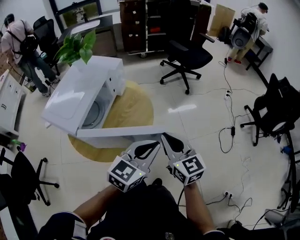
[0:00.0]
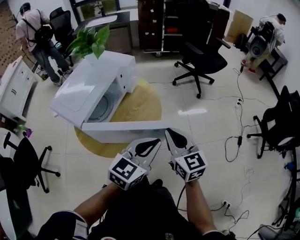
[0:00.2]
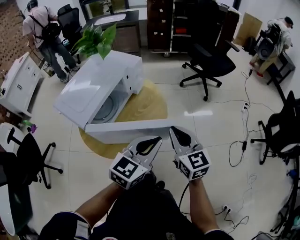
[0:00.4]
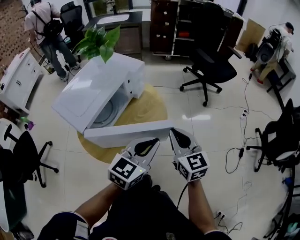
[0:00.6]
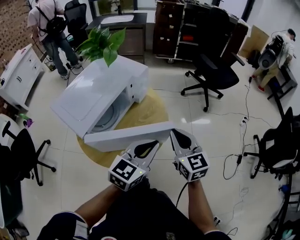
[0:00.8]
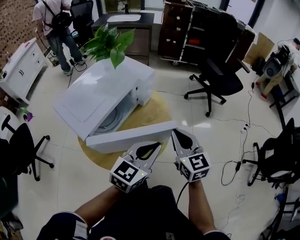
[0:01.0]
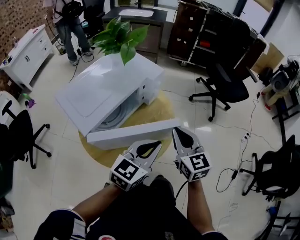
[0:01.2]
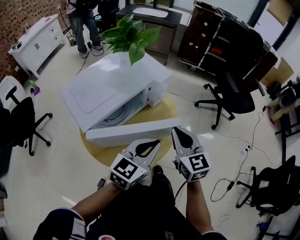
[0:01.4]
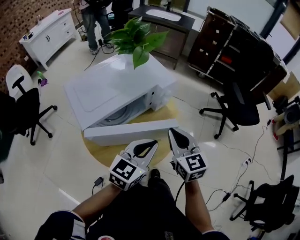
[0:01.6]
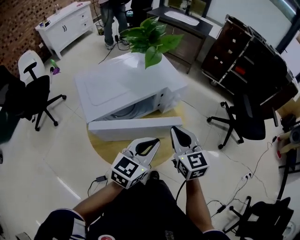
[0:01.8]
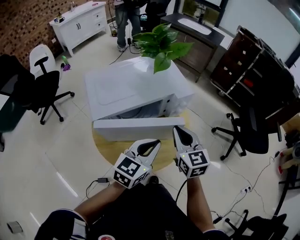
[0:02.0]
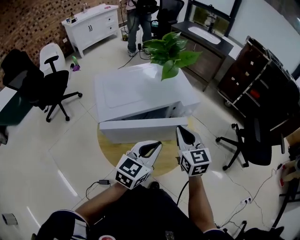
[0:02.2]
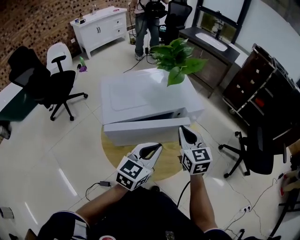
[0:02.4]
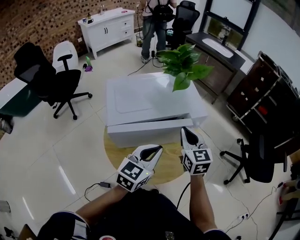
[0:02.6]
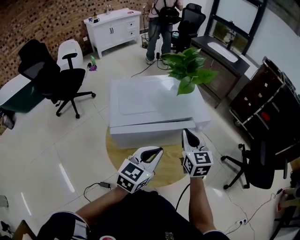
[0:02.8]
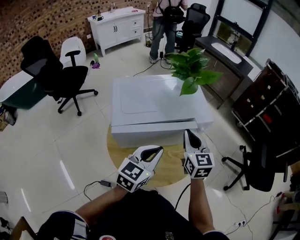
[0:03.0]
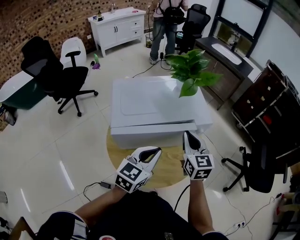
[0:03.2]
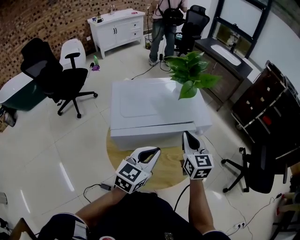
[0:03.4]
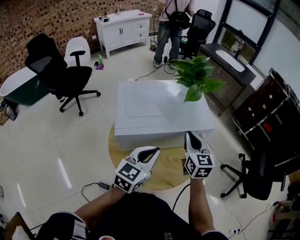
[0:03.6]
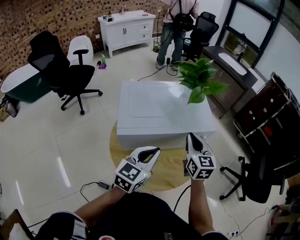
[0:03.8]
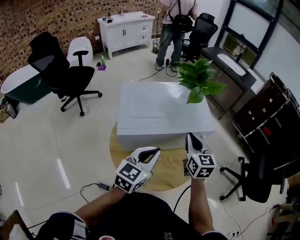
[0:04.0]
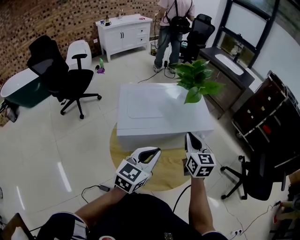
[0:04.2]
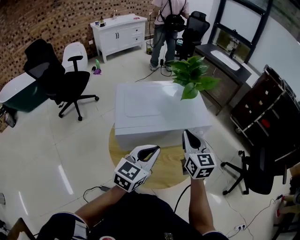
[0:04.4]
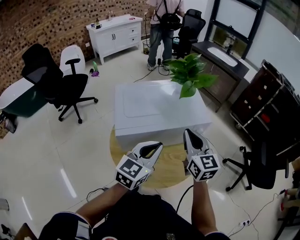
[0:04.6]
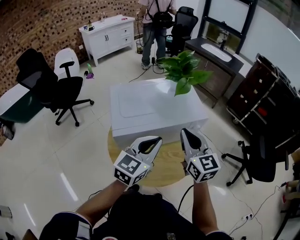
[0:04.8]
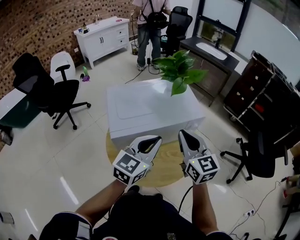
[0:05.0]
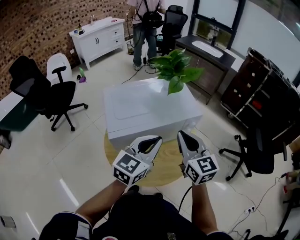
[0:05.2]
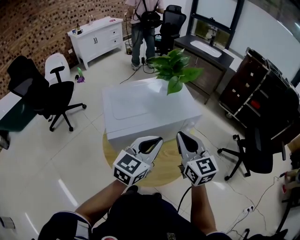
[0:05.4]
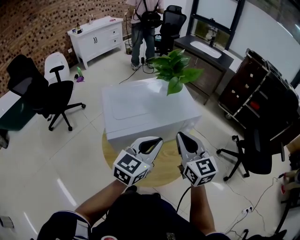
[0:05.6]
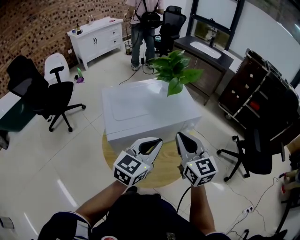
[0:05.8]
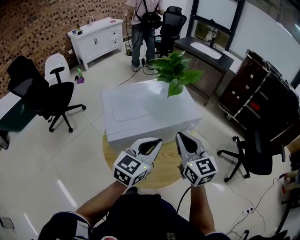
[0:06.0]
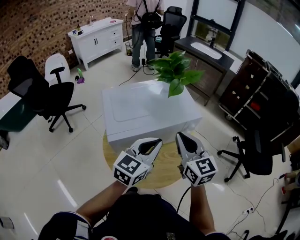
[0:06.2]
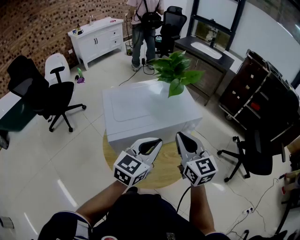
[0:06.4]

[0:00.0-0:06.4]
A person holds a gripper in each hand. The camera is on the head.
0.0 to 1.6 s: The left gripper ends up approximately 20 cm from where it was, and swivels roughly 40 degrees. Meanwhile the right gripper shifts by roughly 20 cm, and rotates some 30 degrees.
1.6 to 3.2 s: The right gripper is displaced forward by approximately 15 cm; the left gripper shifts about 10 cm forward and to the left, and rotates approximately 30 degrees.
3.2 to 4.8 s: The grippers both shift upward by roughly 5 cm.
4.8 to 6.4 s: The grippers move only a little.

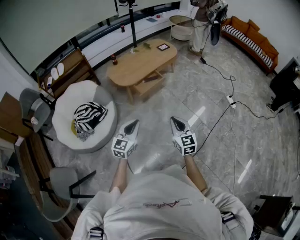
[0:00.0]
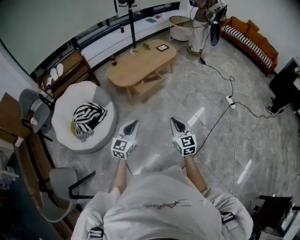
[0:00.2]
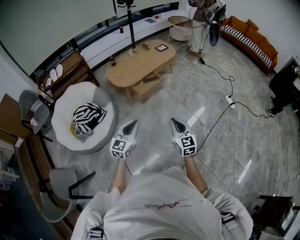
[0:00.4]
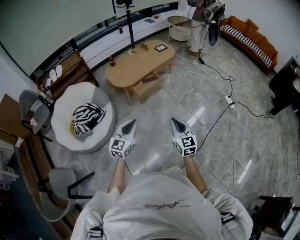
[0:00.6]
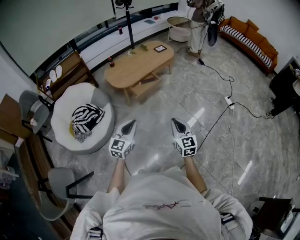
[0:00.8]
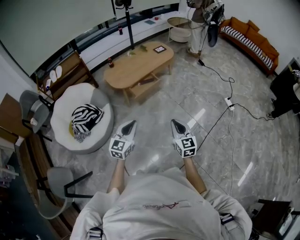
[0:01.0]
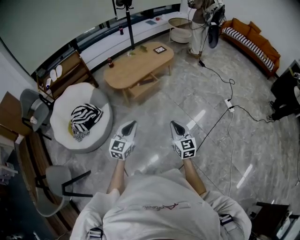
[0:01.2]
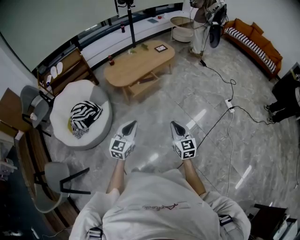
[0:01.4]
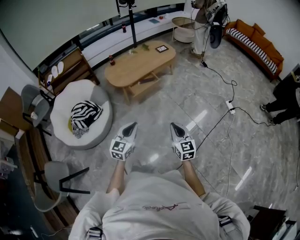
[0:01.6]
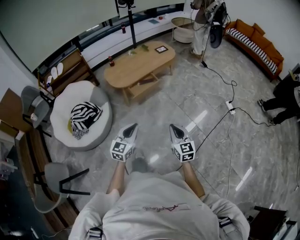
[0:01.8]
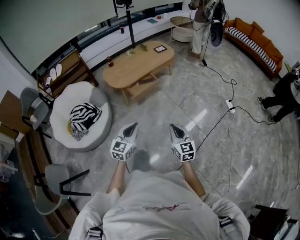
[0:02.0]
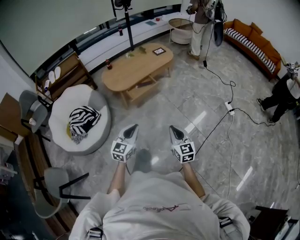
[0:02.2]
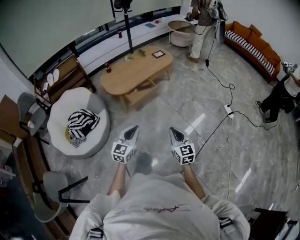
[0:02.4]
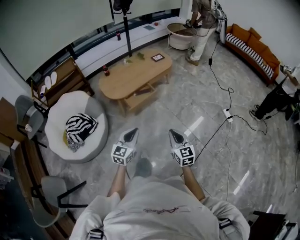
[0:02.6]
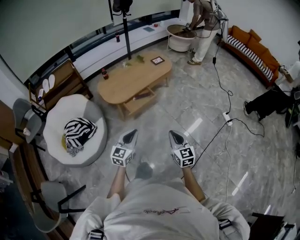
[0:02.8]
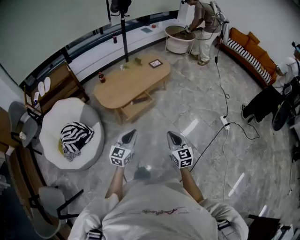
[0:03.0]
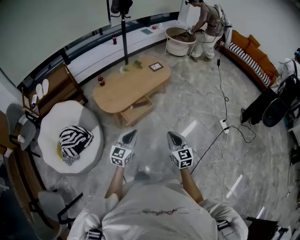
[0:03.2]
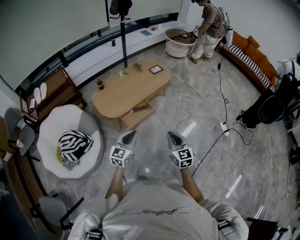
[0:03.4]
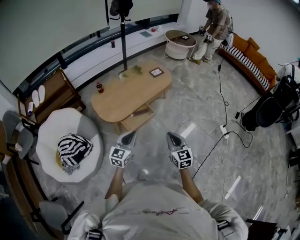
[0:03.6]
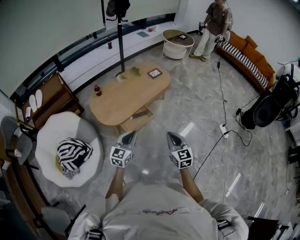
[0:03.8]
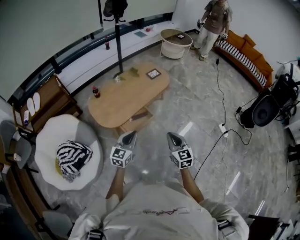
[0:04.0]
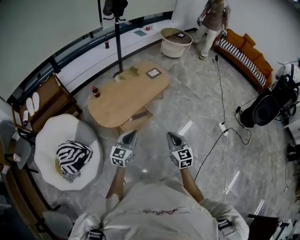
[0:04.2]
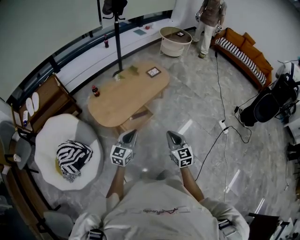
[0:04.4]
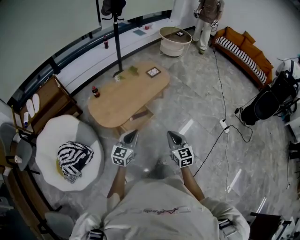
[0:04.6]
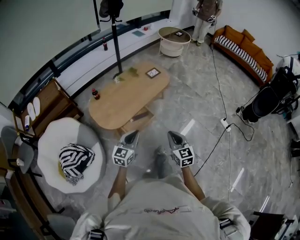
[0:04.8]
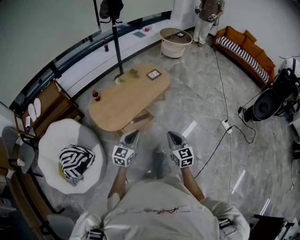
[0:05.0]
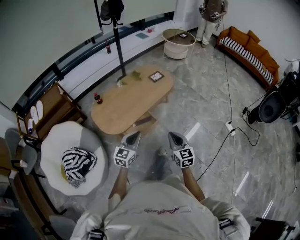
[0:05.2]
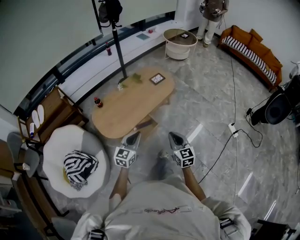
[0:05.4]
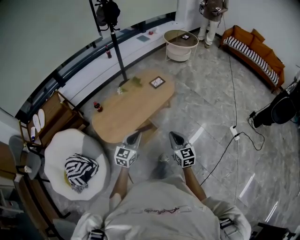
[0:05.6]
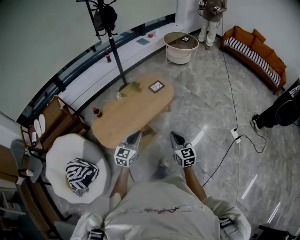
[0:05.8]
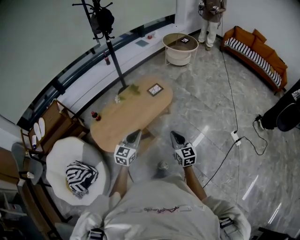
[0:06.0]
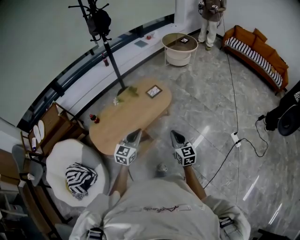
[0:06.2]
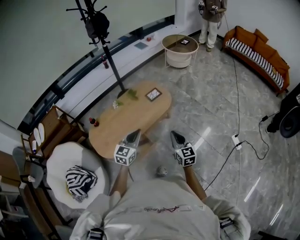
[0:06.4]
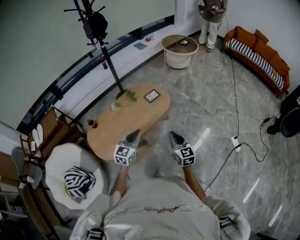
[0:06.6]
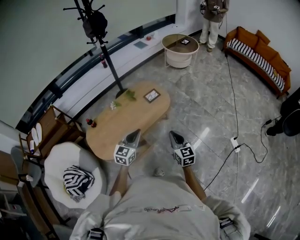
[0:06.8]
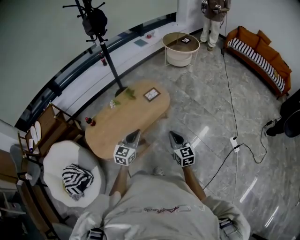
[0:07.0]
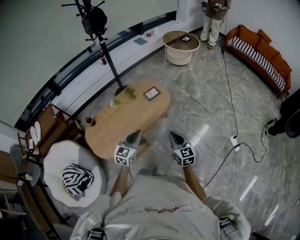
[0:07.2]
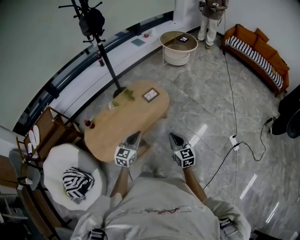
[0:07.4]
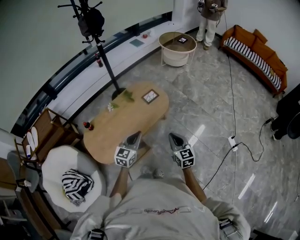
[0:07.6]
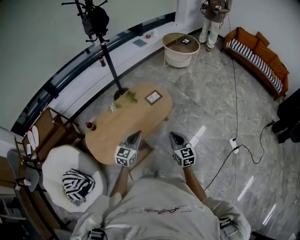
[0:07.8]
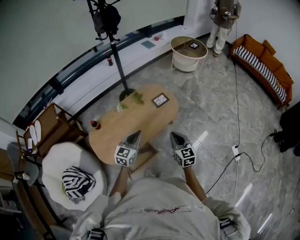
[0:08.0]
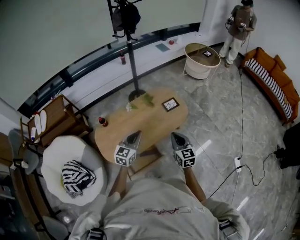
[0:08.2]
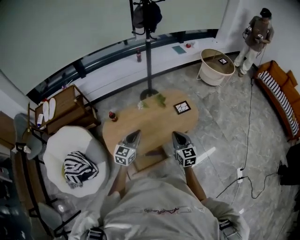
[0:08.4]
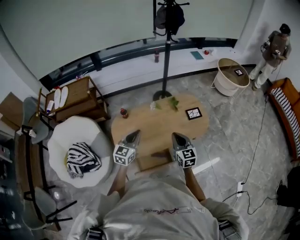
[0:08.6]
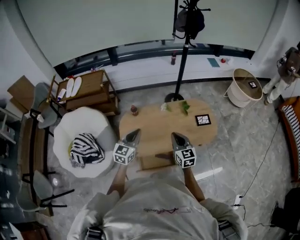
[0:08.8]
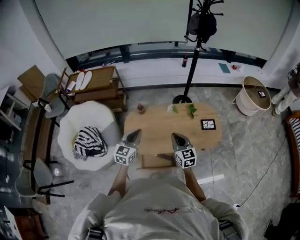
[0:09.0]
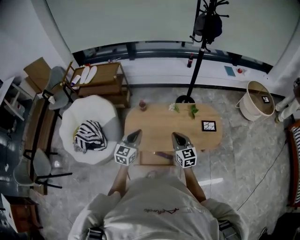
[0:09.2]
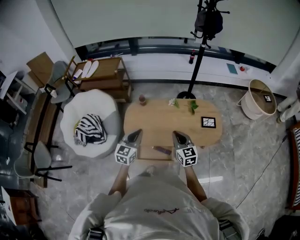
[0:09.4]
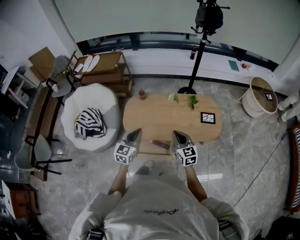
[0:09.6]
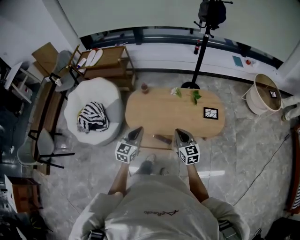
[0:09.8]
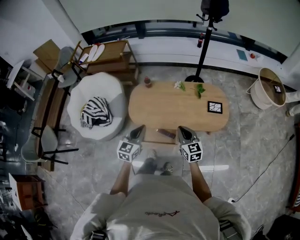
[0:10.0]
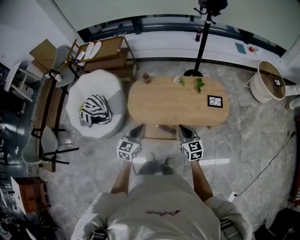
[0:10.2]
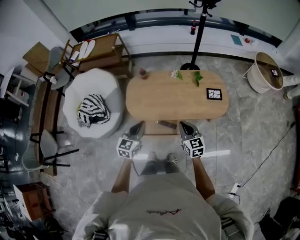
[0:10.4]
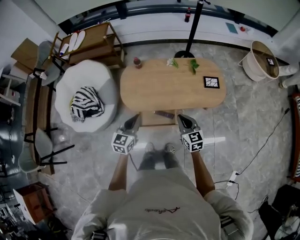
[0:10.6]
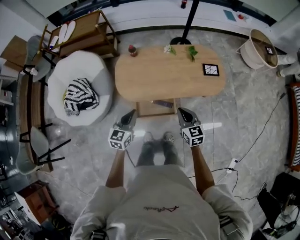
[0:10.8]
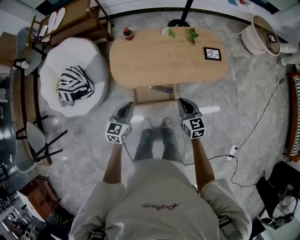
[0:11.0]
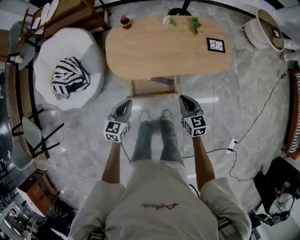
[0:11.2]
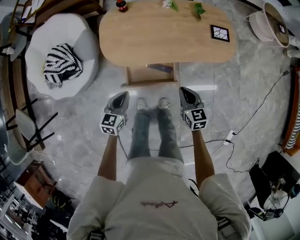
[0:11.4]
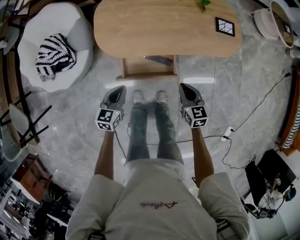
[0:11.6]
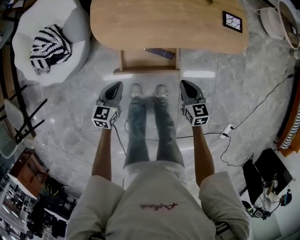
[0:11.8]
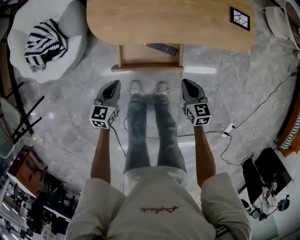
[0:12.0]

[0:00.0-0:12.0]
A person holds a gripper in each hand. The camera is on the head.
0.0 to 1.6 s: The two grippers go roughly 10 cm to the right.
1.6 to 3.0 s: Both grippers move forward, approximately 20 cm.
3.0 to 4.4 s: The right gripper shifts about 25 cm forward and to the left, while the left gripper goes roughly 20 cm forward.
4.4 to 6.0 s: Both grippers travel together forward and to the right, some 25 cm.
6.0 to 7.6 s: Both grippers move forward, roughly 15 cm.
7.6 to 9.0 s: The left gripper ends up approximately 30 cm from where it was, and rotates about 40 degrees. Meanwhile the right gripper ends up roughly 30 cm from where it was, and swivels approximately 40 degrees.
9.0 to 10.4 s: The right gripper goes roughly 15 cm backward, downward and to the right. The left gripper is displaced backward and downward by approximately 15 cm.
10.4 to 12.0 s: The grippers both shift downward by approximately 40 cm. The right gripper swivels about 20 degrees, while the left gripper rotates some 20 degrees.

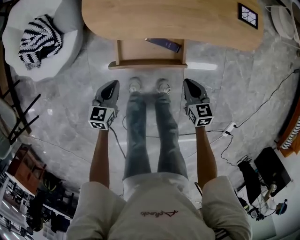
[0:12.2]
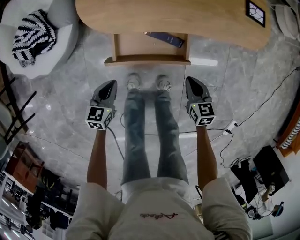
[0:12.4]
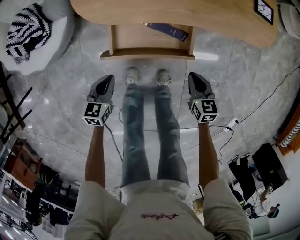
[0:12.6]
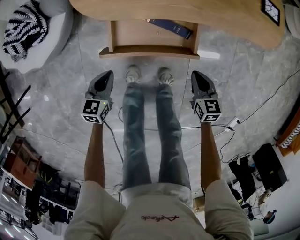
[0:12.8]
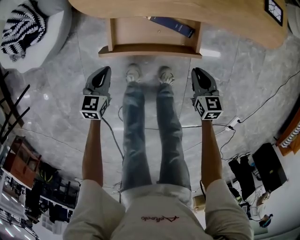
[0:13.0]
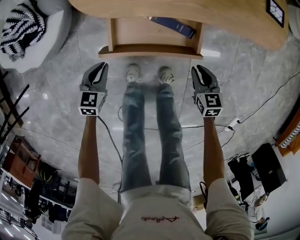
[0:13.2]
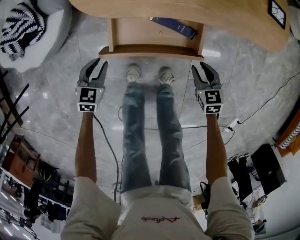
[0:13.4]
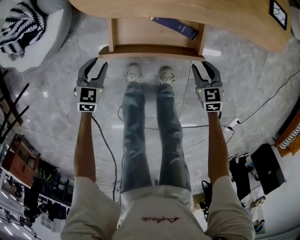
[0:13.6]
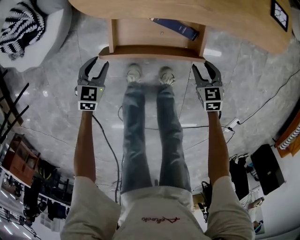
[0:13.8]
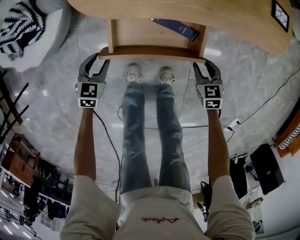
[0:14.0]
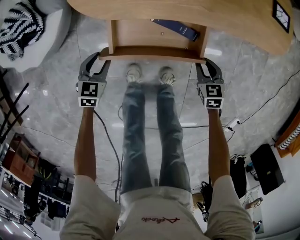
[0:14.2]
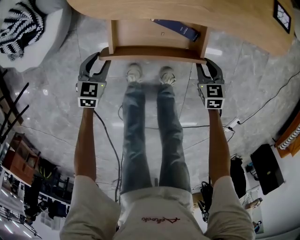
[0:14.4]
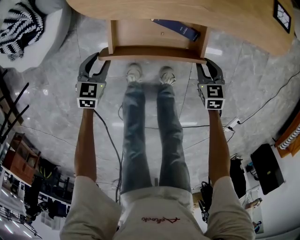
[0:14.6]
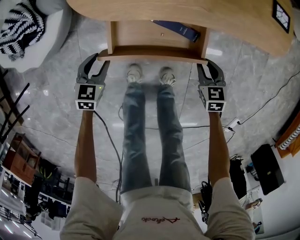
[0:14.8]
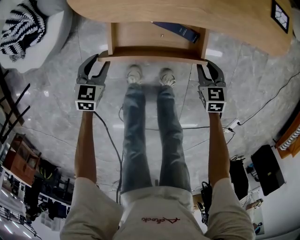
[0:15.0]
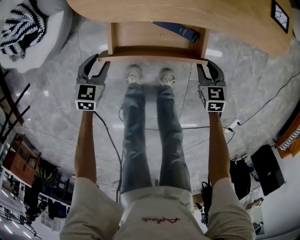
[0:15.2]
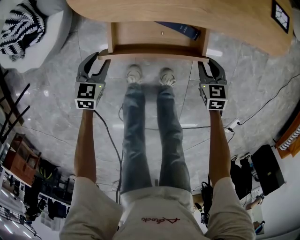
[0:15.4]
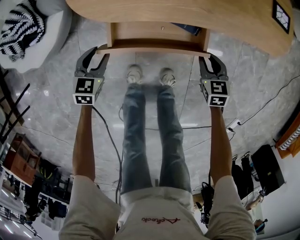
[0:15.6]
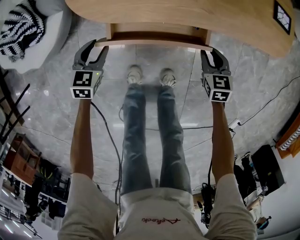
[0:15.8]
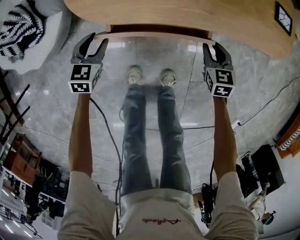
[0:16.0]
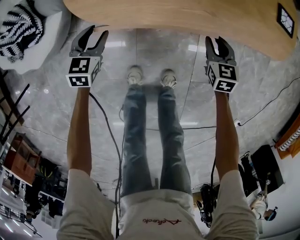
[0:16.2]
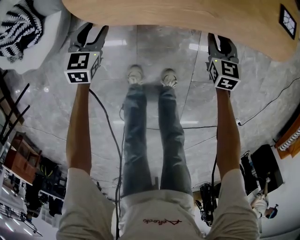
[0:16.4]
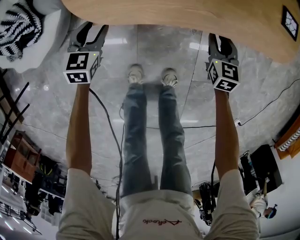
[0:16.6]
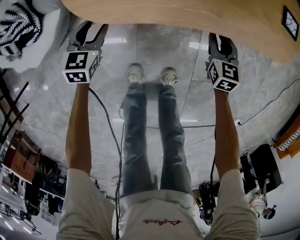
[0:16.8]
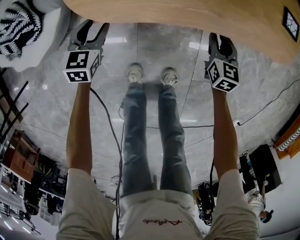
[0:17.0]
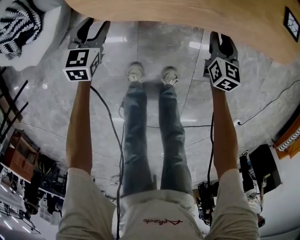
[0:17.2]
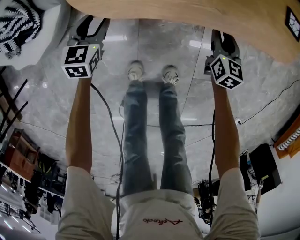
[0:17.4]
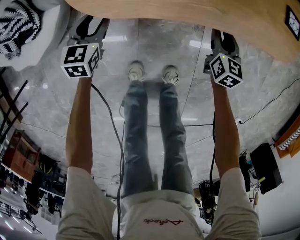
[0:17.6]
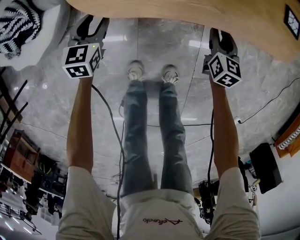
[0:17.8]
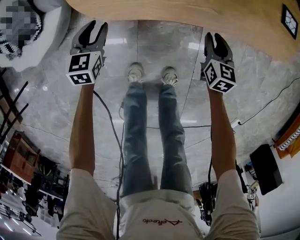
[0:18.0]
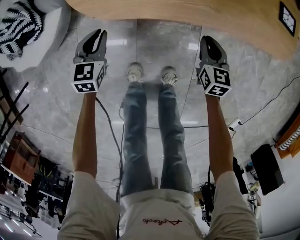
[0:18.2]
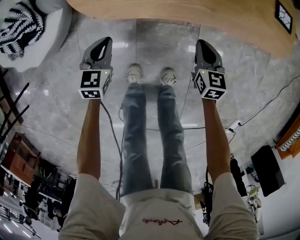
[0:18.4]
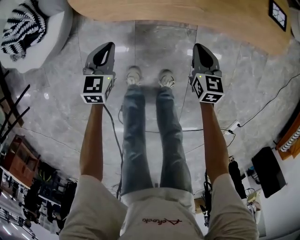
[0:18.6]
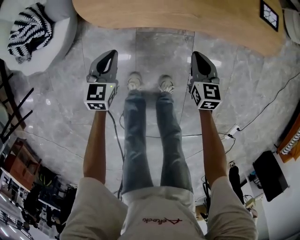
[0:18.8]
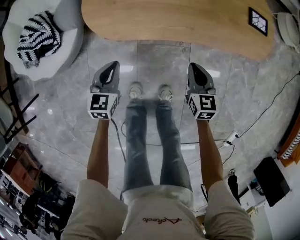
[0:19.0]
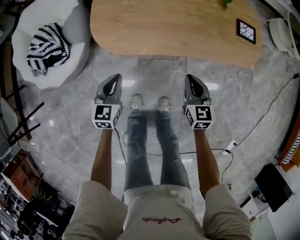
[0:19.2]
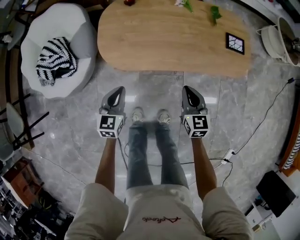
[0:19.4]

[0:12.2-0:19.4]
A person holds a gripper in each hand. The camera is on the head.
12.2 to 13.6 s: The grippers both shift downward by some 15 cm. The left gripper swivels roughly 20 degrees, and opens its fingers, while the right gripper opens up.
13.6 to 15.0 s: There are only small adjustments of the grippers.
15.0 to 16.6 s: The grippers both shift forward by approximately 15 cm.
16.6 to 18.0 s: There are only small adjustments of the grippers.
18.0 to 19.4 s: The two grippers go about 30 cm upward. The right gripper closes its fingers. Meanwhile the left gripper closes its fingers.
